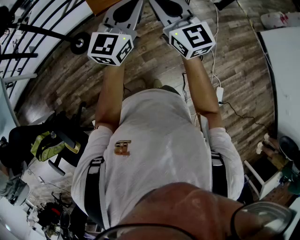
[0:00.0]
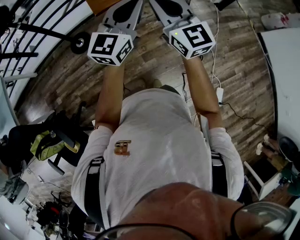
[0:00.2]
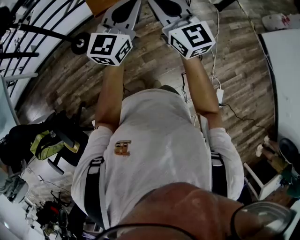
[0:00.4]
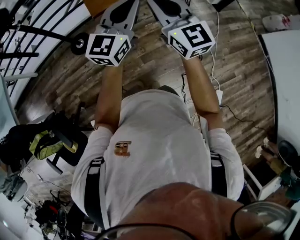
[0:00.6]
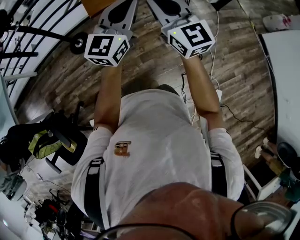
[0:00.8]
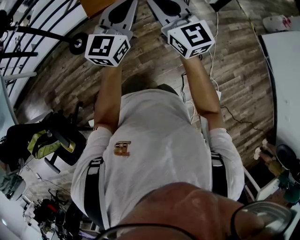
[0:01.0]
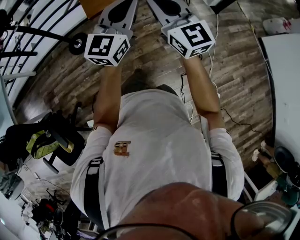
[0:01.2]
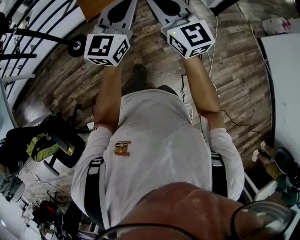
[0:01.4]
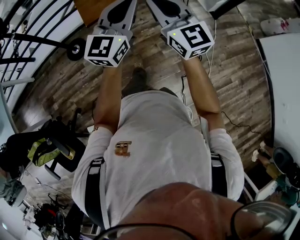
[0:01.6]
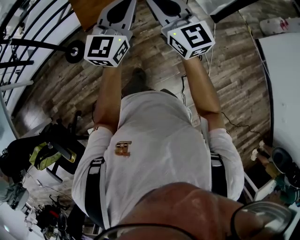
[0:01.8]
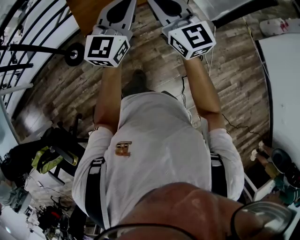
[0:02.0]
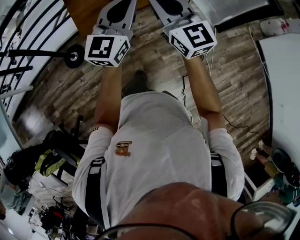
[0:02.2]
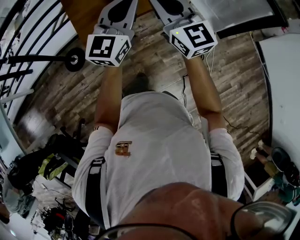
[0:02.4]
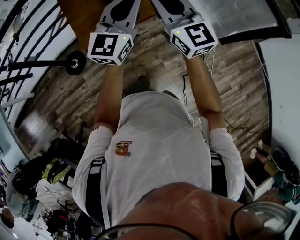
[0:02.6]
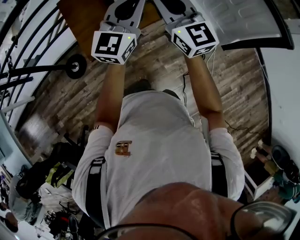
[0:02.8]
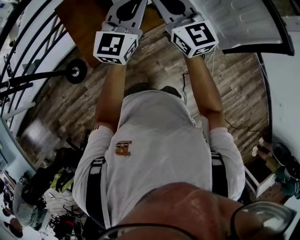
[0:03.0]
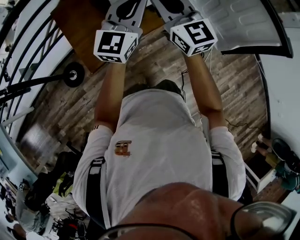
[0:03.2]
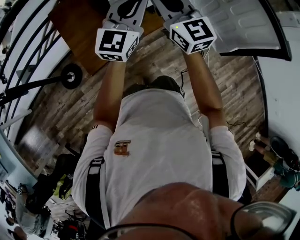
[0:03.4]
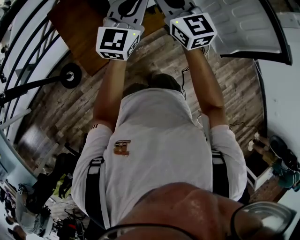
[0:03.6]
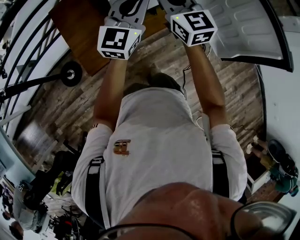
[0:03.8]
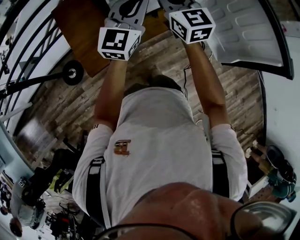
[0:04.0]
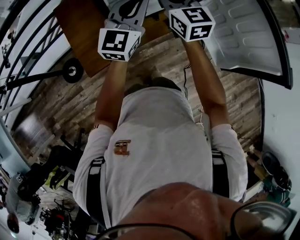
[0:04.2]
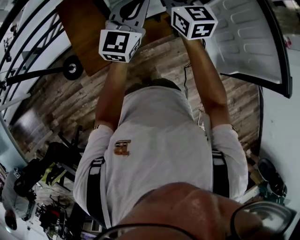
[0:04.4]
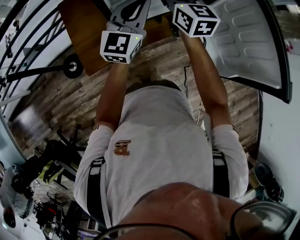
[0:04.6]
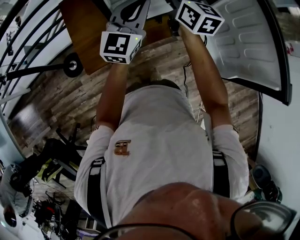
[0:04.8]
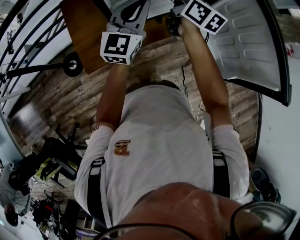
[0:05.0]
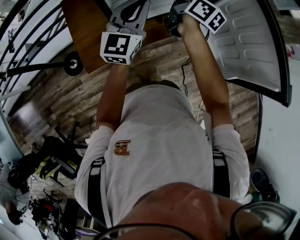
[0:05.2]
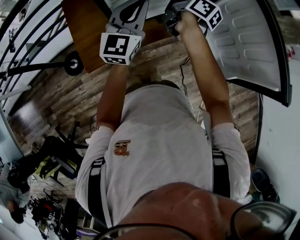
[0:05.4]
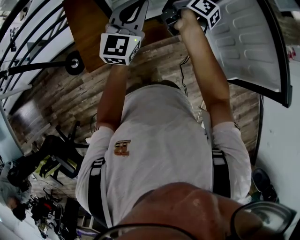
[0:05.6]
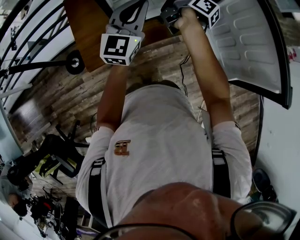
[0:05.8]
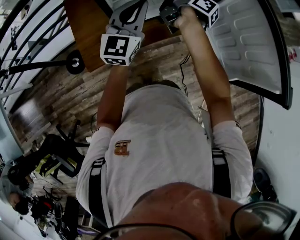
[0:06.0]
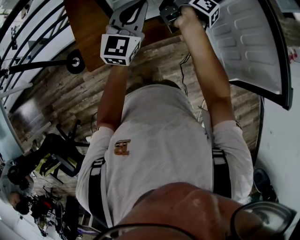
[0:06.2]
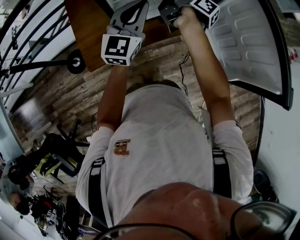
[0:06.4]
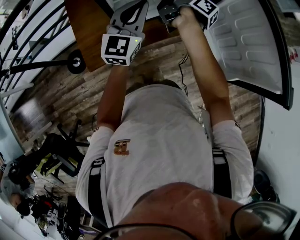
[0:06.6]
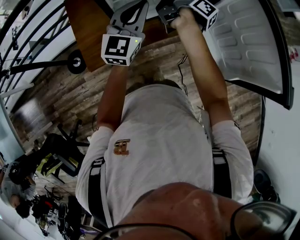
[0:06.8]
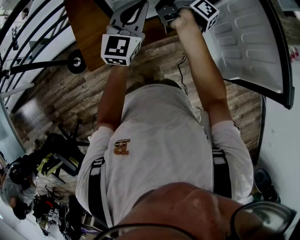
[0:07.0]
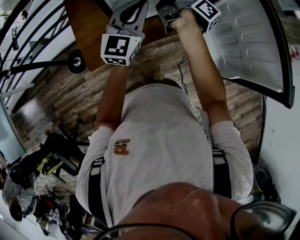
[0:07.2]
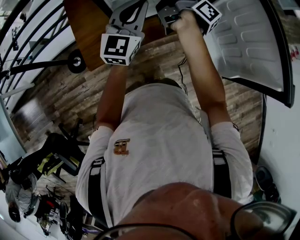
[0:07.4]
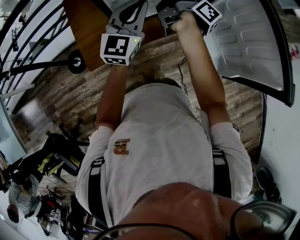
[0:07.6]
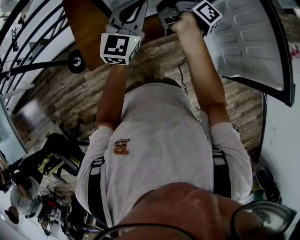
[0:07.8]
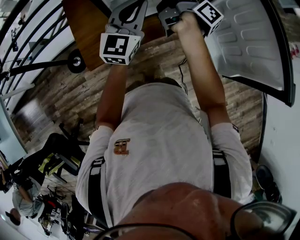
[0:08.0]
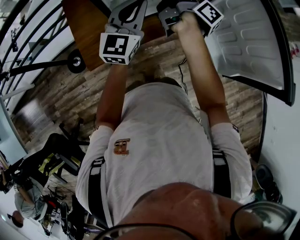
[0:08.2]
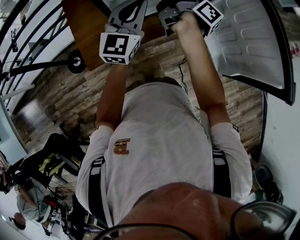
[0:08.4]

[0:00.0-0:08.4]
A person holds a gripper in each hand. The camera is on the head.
0:00.0 to 0:01.4: Both grippers move to the right and forward, approximately 10 cm.
0:01.4 to 0:02.8: Both grippers travel together forward, about 35 cm.
0:02.8 to 0:04.2: The two grippers go some 15 cm forward.
0:04.2 to 0:05.6: The right gripper shifts roughly 10 cm downward and forward, twists some 70 degrees clockwise, seen from behind, and opens its fingers.
0:05.6 to 0:07.0: The right gripper closes.
0:07.0 to 0:08.4: There are only small adjustments of the grippers.

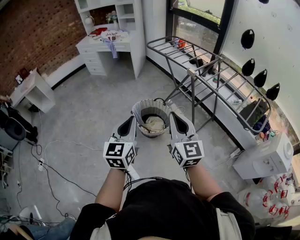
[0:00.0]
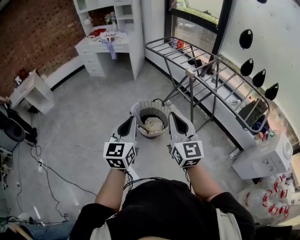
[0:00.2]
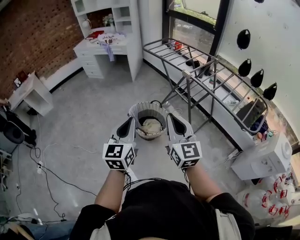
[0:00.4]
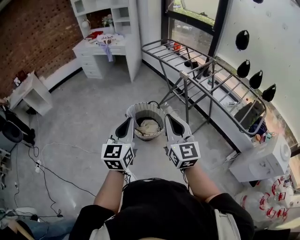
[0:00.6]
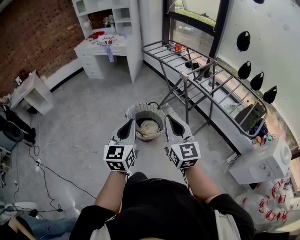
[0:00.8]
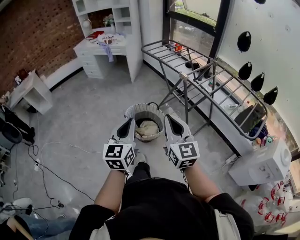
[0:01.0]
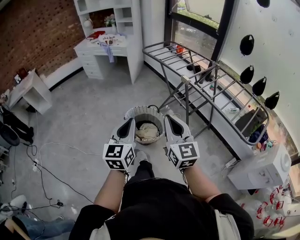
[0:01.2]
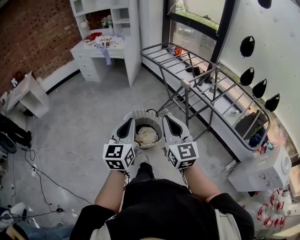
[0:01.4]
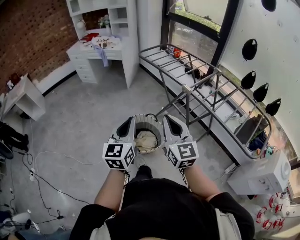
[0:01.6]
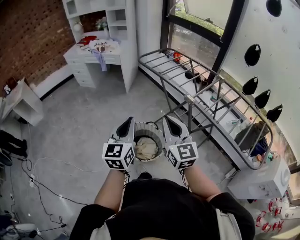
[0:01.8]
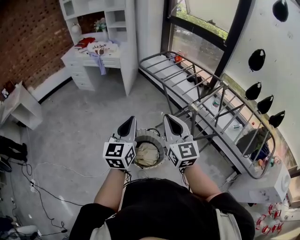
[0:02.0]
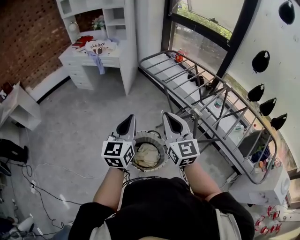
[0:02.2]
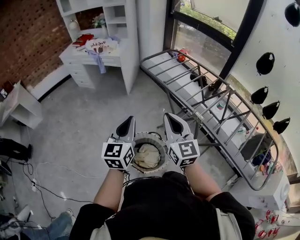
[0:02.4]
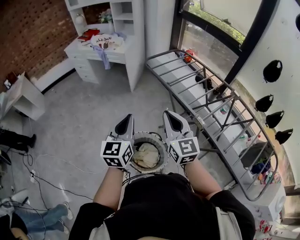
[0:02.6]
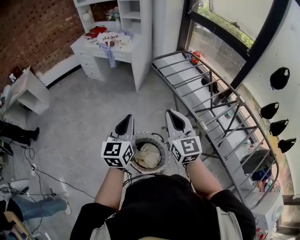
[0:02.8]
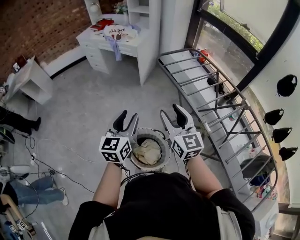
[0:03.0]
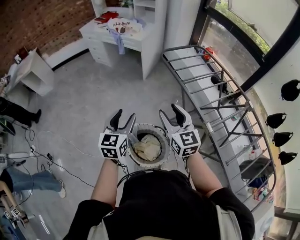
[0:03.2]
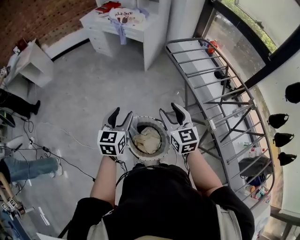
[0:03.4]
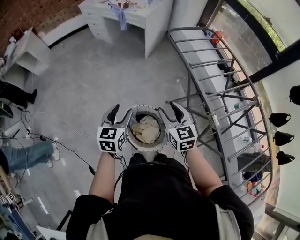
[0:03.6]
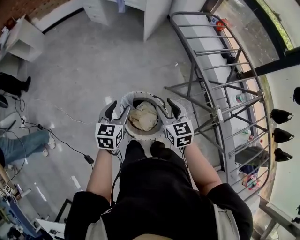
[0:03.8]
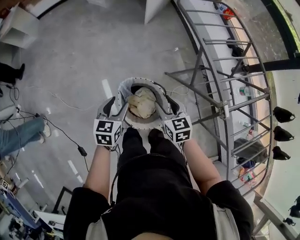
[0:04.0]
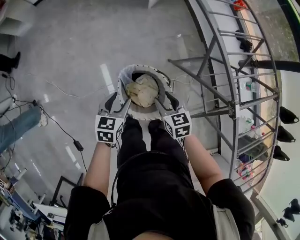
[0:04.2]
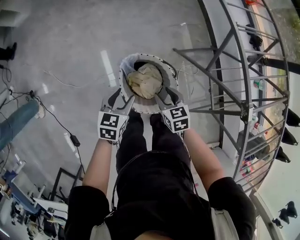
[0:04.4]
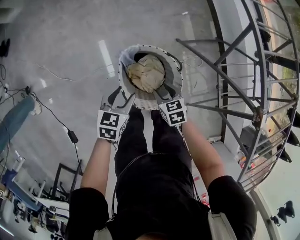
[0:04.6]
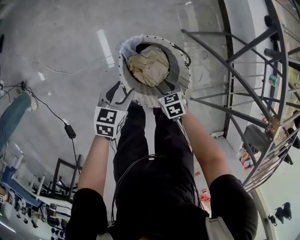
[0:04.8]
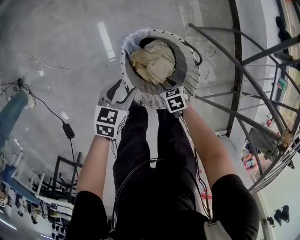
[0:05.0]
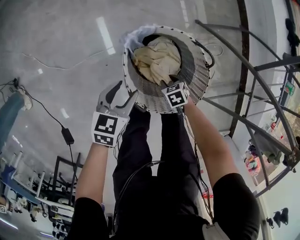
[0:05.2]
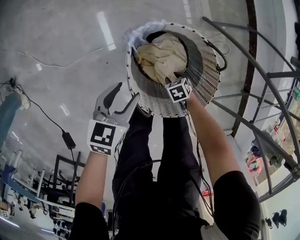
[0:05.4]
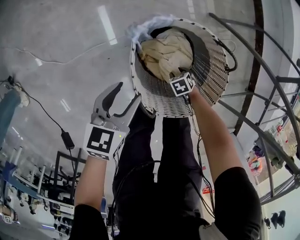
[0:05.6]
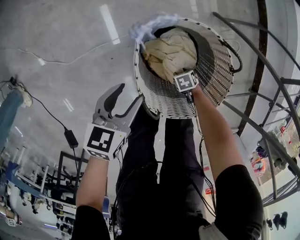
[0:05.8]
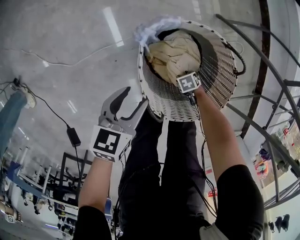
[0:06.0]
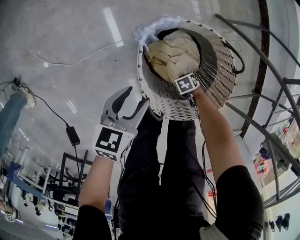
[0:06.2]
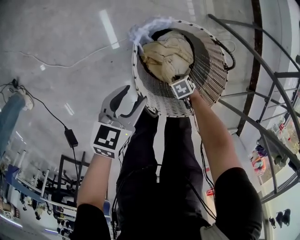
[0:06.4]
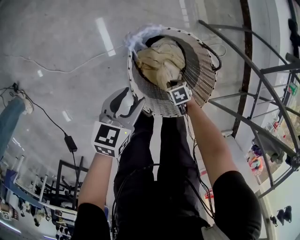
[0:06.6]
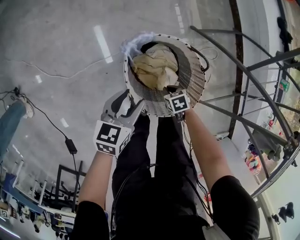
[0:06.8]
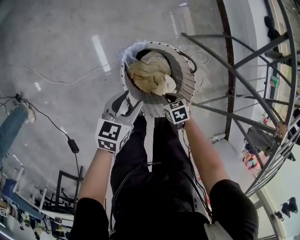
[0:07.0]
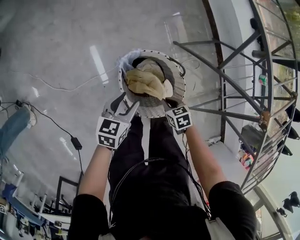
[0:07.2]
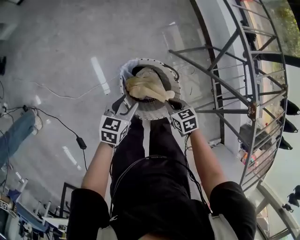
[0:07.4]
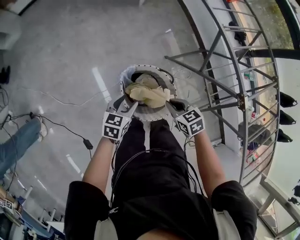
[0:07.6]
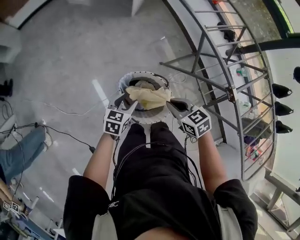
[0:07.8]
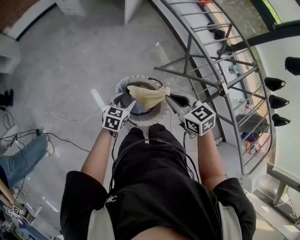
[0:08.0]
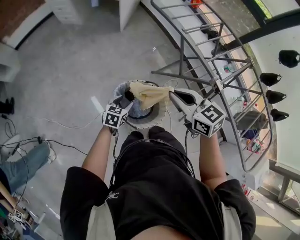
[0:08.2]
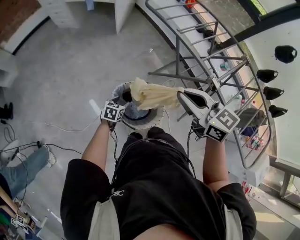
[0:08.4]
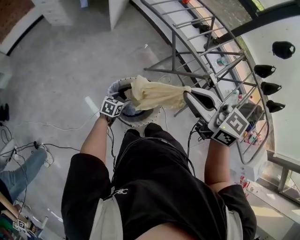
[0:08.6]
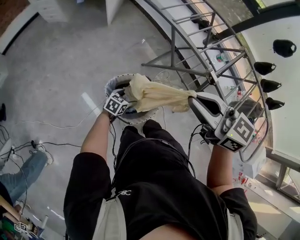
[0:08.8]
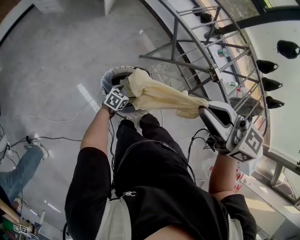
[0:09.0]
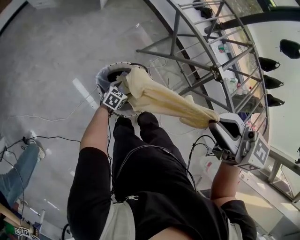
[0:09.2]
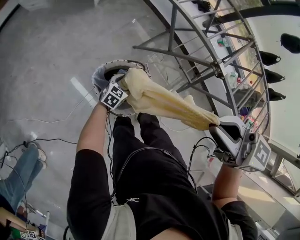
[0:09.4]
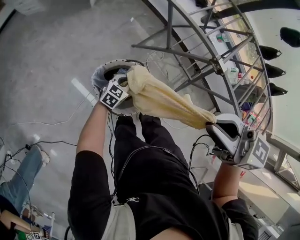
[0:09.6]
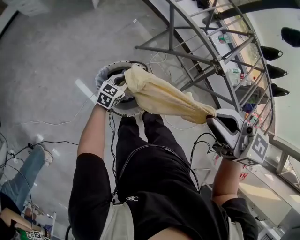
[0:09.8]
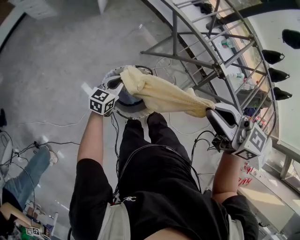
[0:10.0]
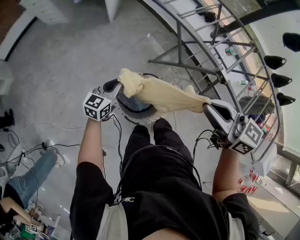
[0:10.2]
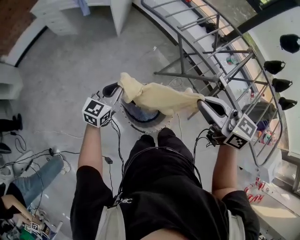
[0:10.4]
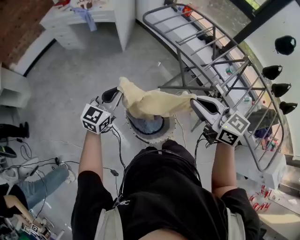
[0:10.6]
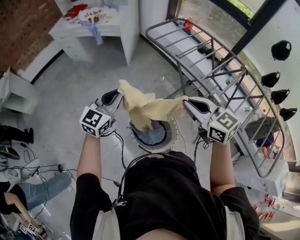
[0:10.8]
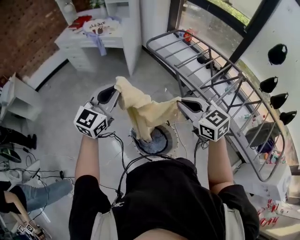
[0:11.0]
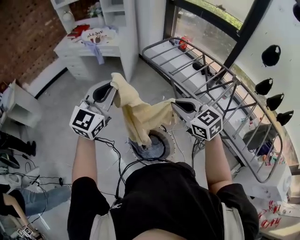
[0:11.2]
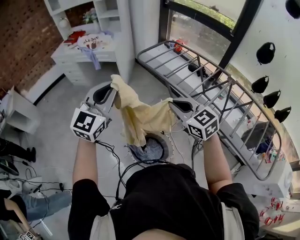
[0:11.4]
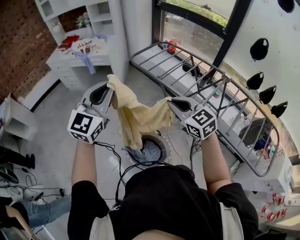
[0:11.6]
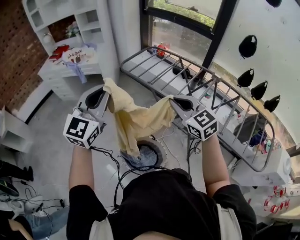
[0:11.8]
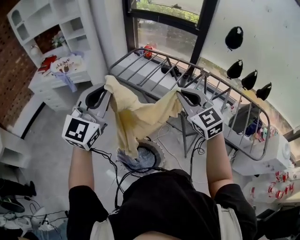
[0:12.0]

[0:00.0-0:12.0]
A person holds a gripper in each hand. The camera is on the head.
0:00.0 to 0:01.6: Both grippers move forward, some 15 cm.
0:01.6 to 0:03.0: Both grippers travel together forward, roughly 30 cm. The right gripper opens its fingers, while the left gripper opens up.
0:03.0 to 0:04.4: Both grippers travel together downward, approximately 40 cm. The right gripper tips its fingers downward by about 50 degrees, while the left gripper points its fingers roughly 30 degrees further downward.
0:04.4 to 0:06.0: The right gripper goes roughly 50 cm downward, and rotates some 50 degrees. Meanwhile the left gripper goes some 25 cm downward.
0:06.0 to 0:07.6: The right gripper moves upward, roughly 60 cm, changes its angle by some 40 degrees, and closes up. The left gripper moves upward, about 25 cm.
0:07.6 to 0:09.0: The right gripper moves upward, some 40 cm, and points its fingers roughly 40 degrees further upward; the left gripper goes some 15 cm to the right and downward, swivels some 30 degrees, and opens.
0:09.0 to 0:10.4: The left gripper goes roughly 30 cm upward, turns by about 40 degrees, and closes its fingers, while the right gripper shifts by roughly 5 cm.
0:10.4 to 0:12.0: The right gripper is displaced upward and to the right by approximately 15 cm, and swivels about 50 degrees; the left gripper heads upward, covering about 40 cm, and changes its angle by approximately 40 degrees.

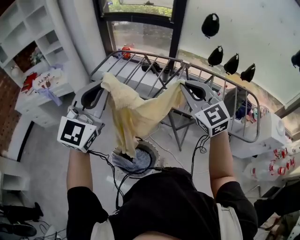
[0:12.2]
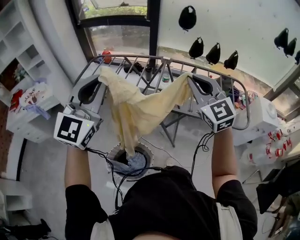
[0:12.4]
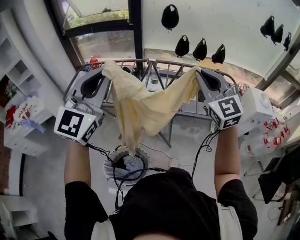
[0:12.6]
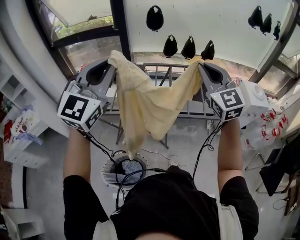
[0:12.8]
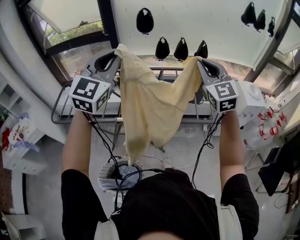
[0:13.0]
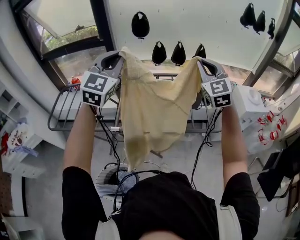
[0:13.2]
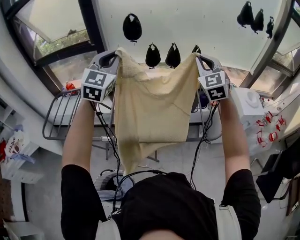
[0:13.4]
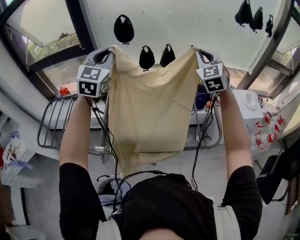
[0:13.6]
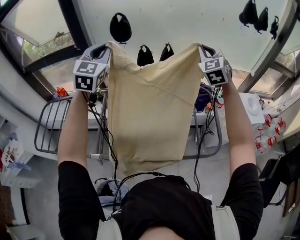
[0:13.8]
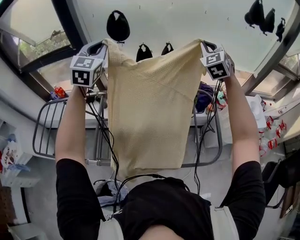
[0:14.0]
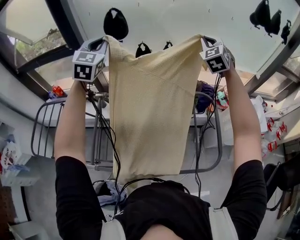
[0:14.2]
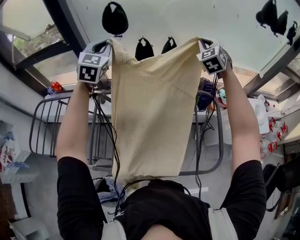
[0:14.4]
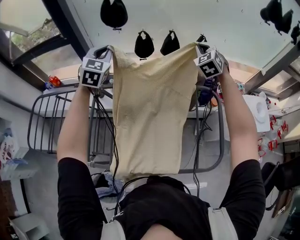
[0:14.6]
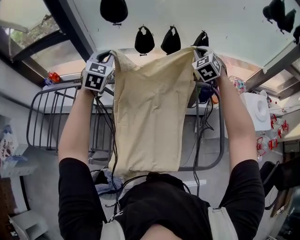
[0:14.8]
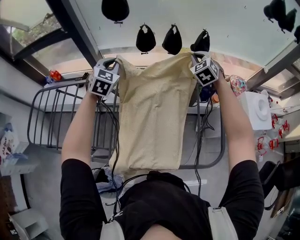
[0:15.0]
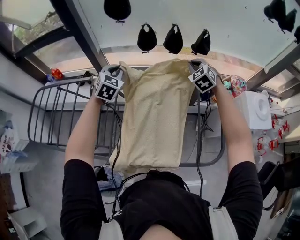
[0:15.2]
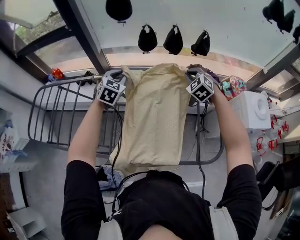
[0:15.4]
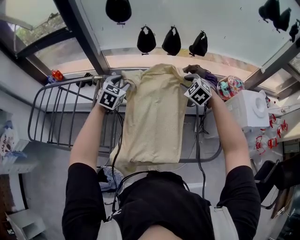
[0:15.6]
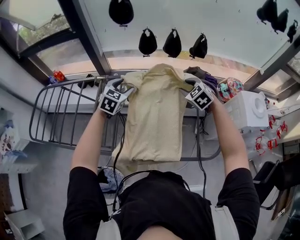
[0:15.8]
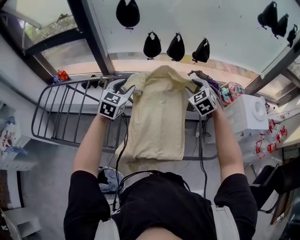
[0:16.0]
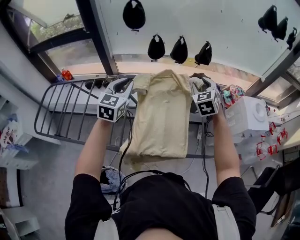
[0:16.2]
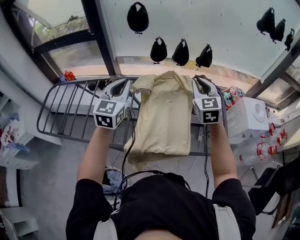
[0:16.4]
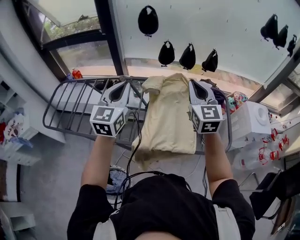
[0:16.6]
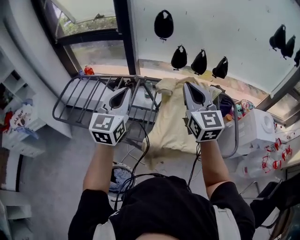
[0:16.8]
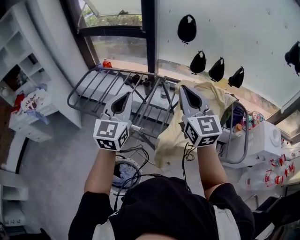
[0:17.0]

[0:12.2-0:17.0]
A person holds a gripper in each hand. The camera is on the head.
0:12.2 to 0:13.8: The pair of grippers is taken some 70 cm. The right gripper changes its angle by approximately 50 degrees.
0:13.8 to 0:15.4: The grippers both shift downward by approximately 30 cm. The right gripper points its fingers approximately 30 degrees further downward; the left gripper points its fingers approximately 30 degrees further downward.
0:15.4 to 0:17.0: The pair of grippers is taken approximately 40 cm. The right gripper tilts its fingers about 50 degrees upward, and opens, then closes once more. The left gripper tilts its fingers approximately 30 degrees upward, and opens and closes again.
